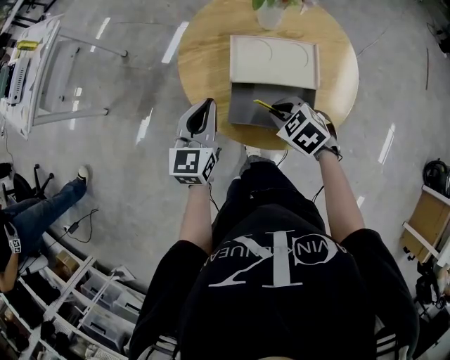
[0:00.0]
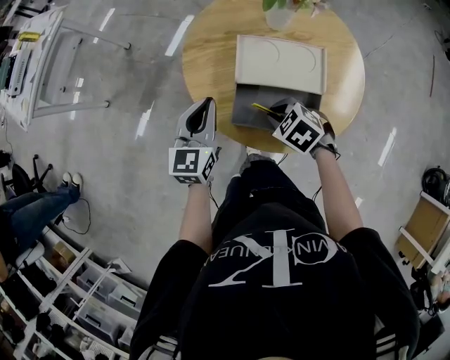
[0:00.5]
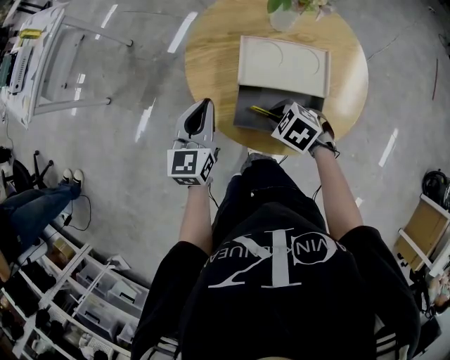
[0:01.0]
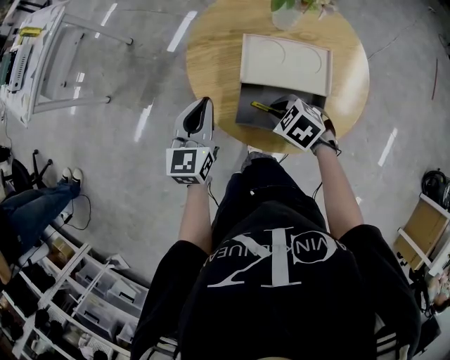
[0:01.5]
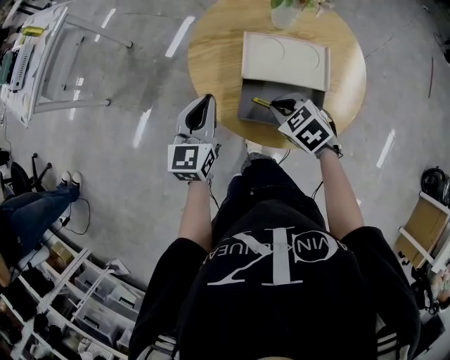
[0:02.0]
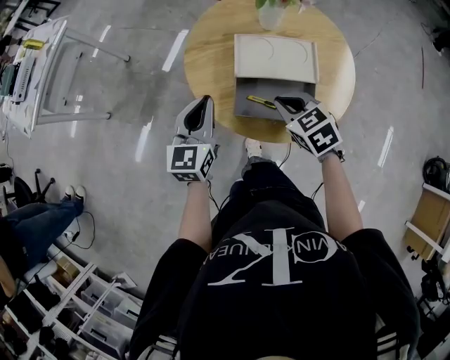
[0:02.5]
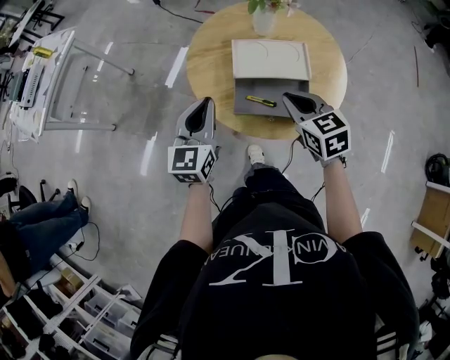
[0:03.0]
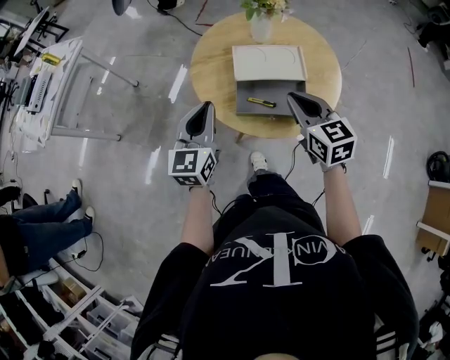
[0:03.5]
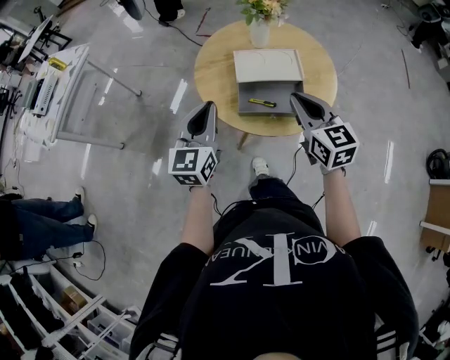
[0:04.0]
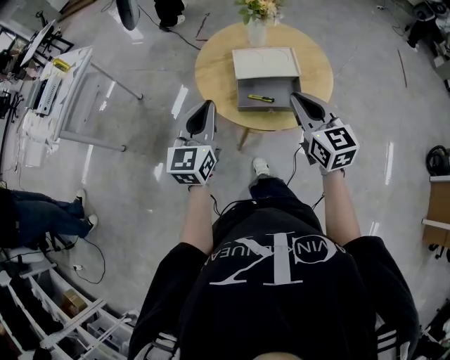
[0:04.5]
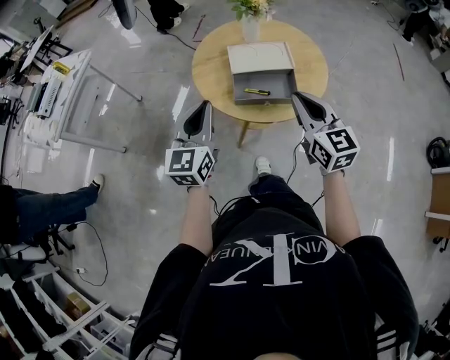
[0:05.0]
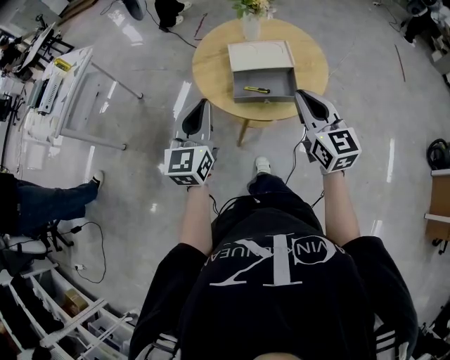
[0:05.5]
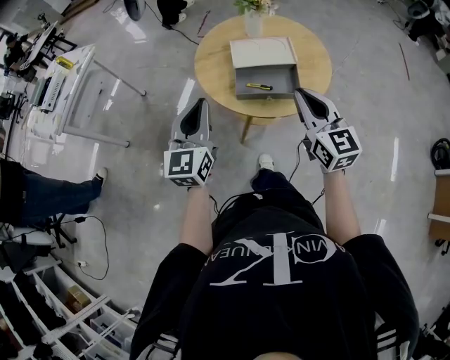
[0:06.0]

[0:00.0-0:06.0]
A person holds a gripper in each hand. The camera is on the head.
0:00.0 to 0:02.0: The grippers stay close to where they were, moving slightly.
0:02.0 to 0:04.0: The right gripper moves upward, about 20 cm, and angles its fingers upward, by roughly 40 degrees, while the left gripper moves upward and backward, roughly 15 cm.
0:04.0 to 0:06.0: Both grippers move backward, roughly 10 cm.

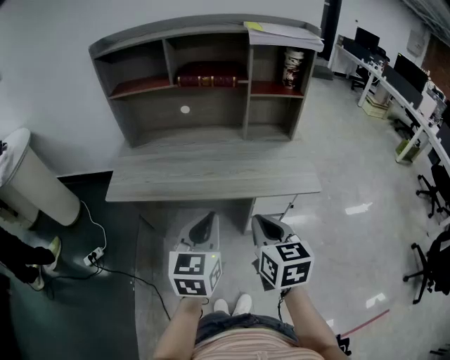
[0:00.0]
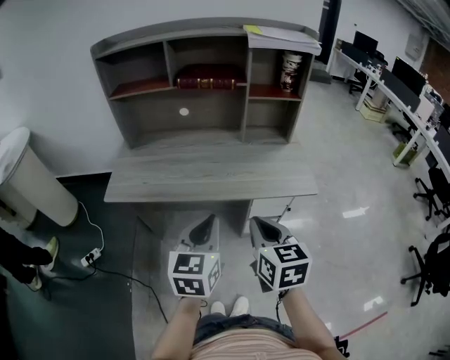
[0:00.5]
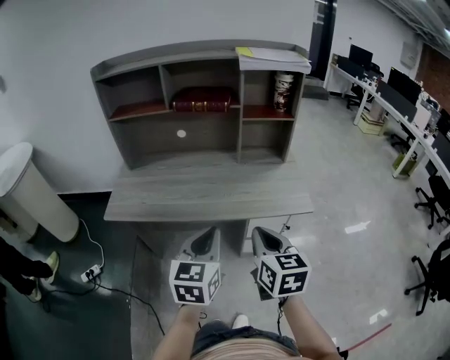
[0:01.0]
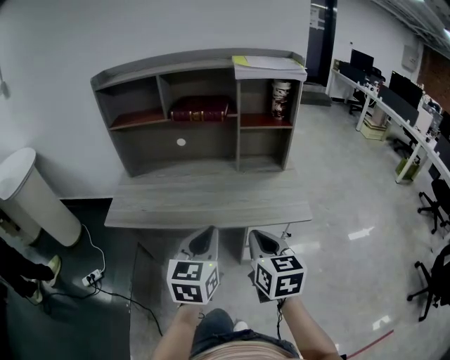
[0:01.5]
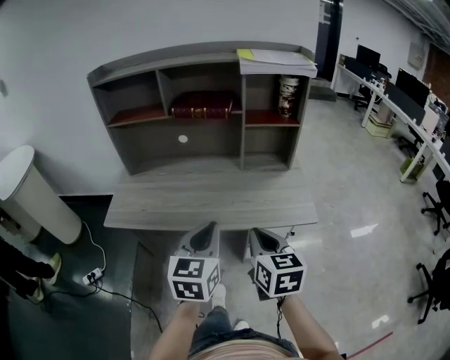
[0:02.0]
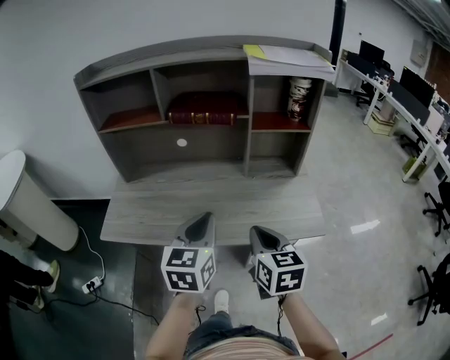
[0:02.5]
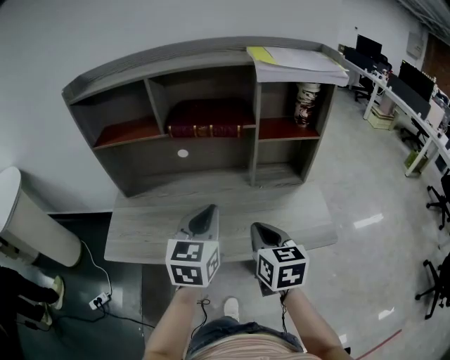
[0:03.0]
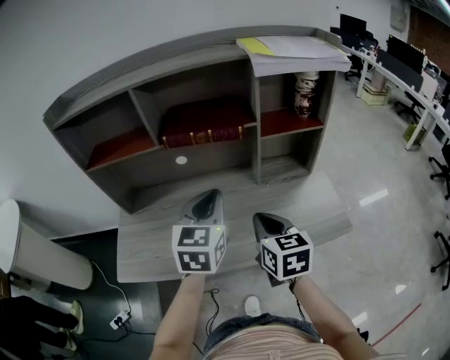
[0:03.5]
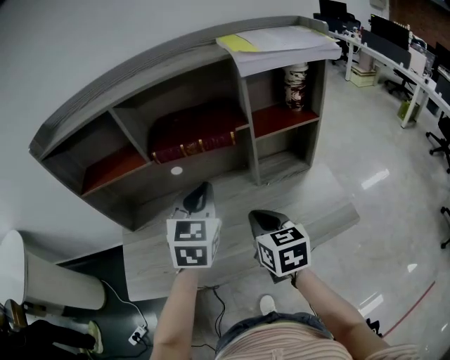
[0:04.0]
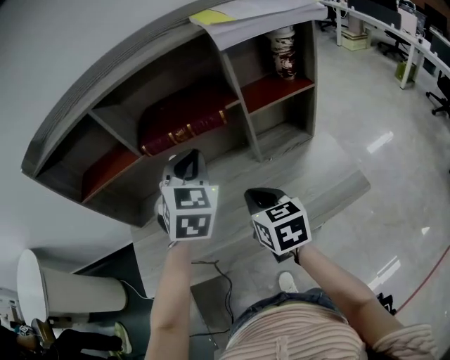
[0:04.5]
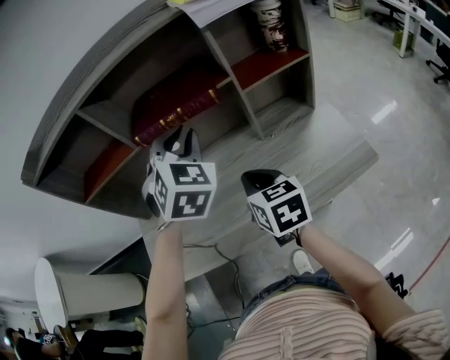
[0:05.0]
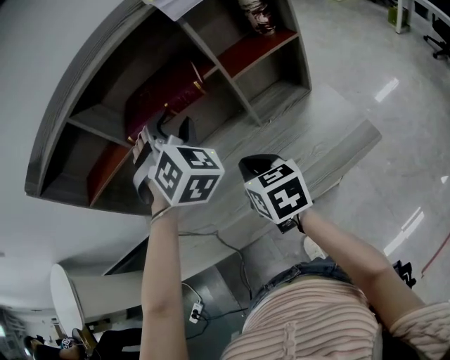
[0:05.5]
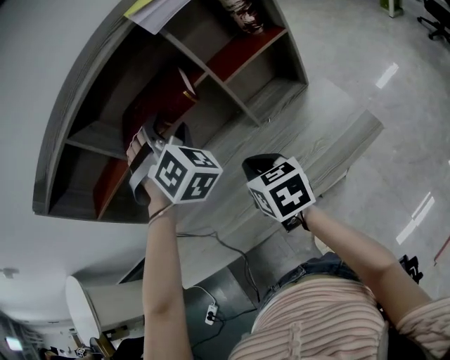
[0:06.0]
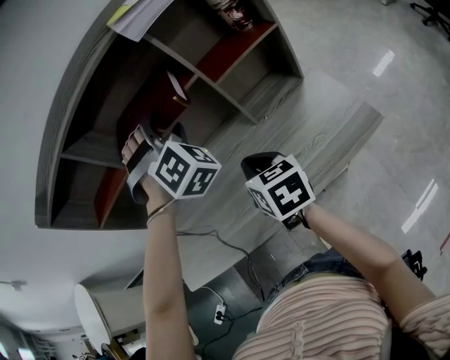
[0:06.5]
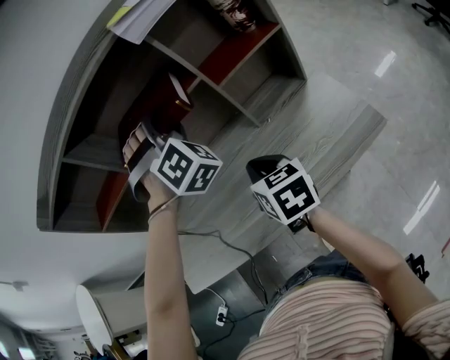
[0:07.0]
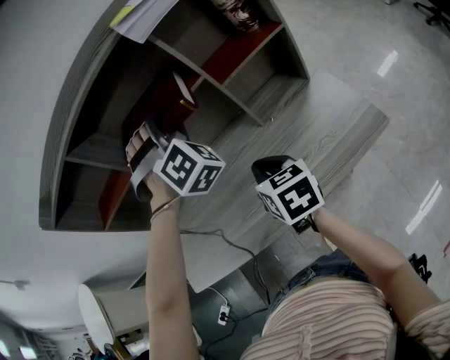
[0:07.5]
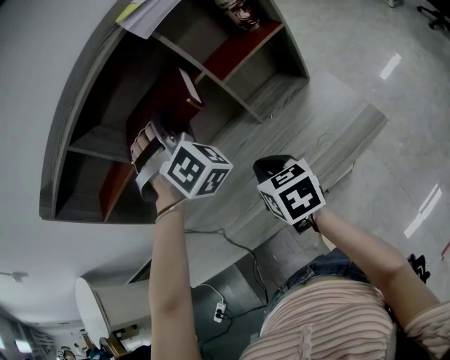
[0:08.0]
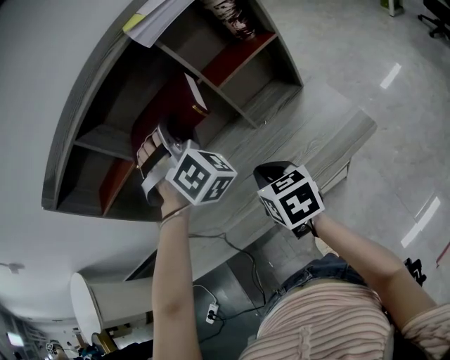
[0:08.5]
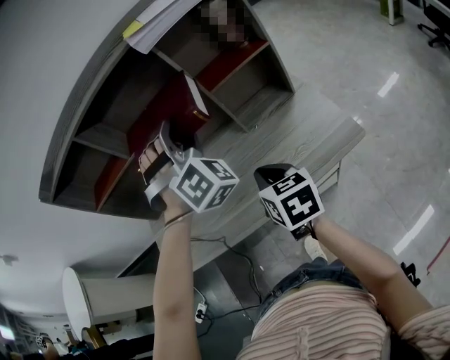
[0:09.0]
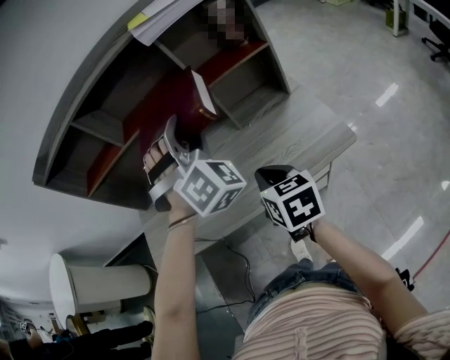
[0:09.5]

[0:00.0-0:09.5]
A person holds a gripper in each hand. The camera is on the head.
0:00.0 to 0:02.0: The two grippers go some 5 cm forward.
0:02.0 to 0:04.0: Both grippers travel together forward, approximately 25 cm. The left gripper rotates some 20 degrees.
0:04.0 to 0:05.5: The left gripper shifts roughly 5 cm forward, twists some 50 degrees clockwise, seen from behind, and opens.
0:05.5 to 0:07.5: The left gripper changes place by roughly 5 cm, and turns by approximately 20 degrees.
0:07.5 to 0:09.5: The grippers both shift backward by about 15 cm.

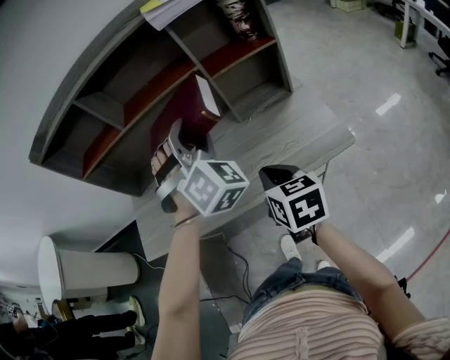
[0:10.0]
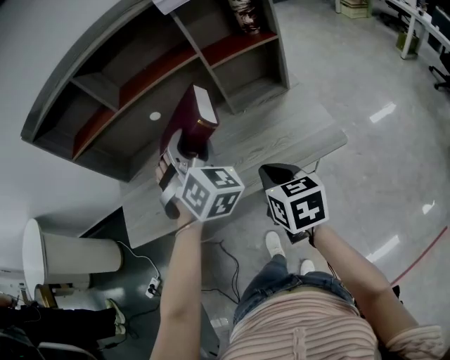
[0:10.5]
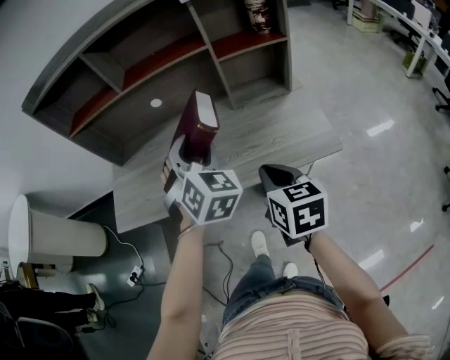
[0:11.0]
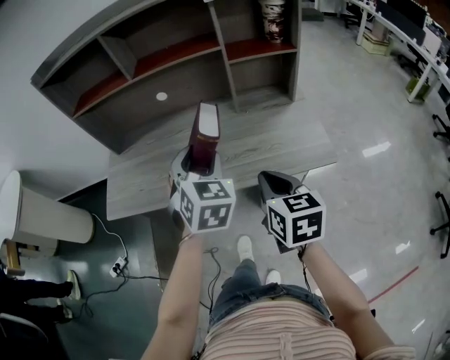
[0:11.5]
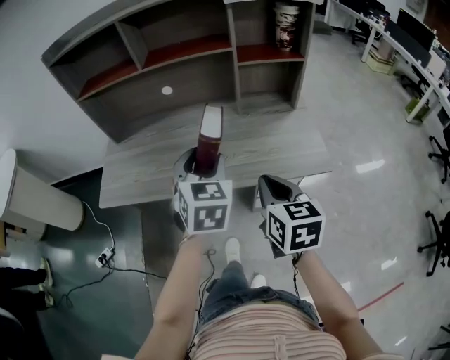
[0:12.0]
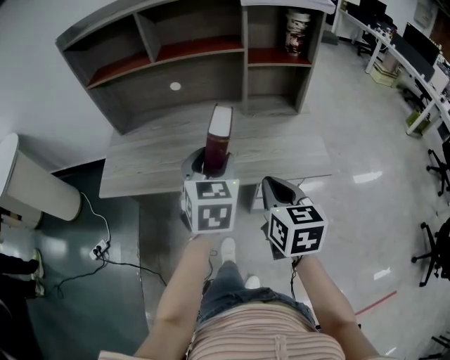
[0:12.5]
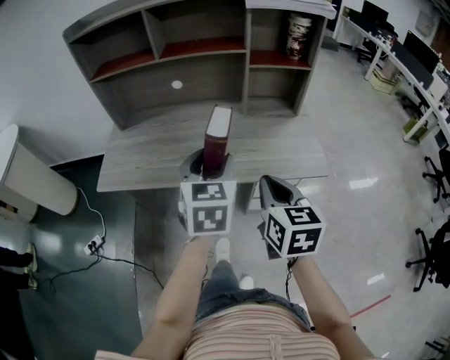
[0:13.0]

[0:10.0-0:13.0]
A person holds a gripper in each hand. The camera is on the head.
0:10.0 to 0:11.5: The right gripper shifts about 5 cm backward; the left gripper travels backward and downward by approximately 15 cm, and rotates around the line of its fingers by approximately 40 degrees, counterclockwise from behind.
0:11.5 to 0:13.0: The right gripper ends up some 5 cm from where it was. The left gripper travels backward by some 5 cm, and turns by roughly 20 degrees.

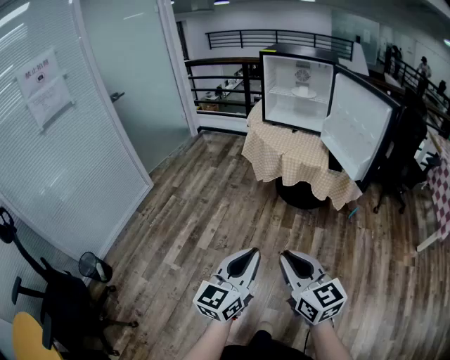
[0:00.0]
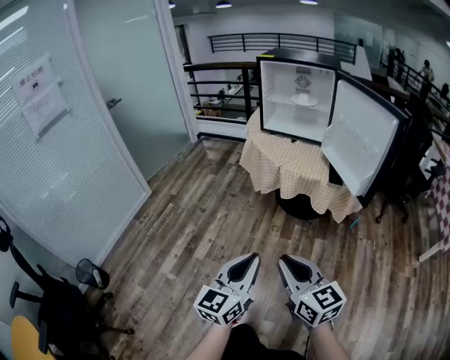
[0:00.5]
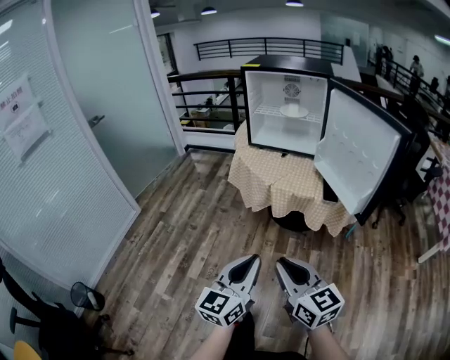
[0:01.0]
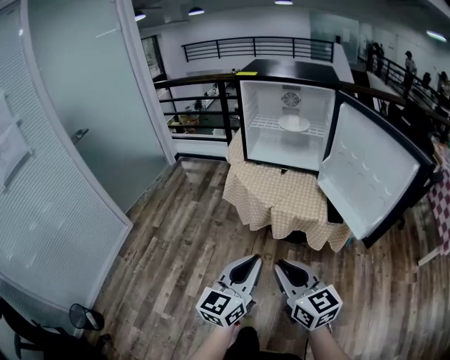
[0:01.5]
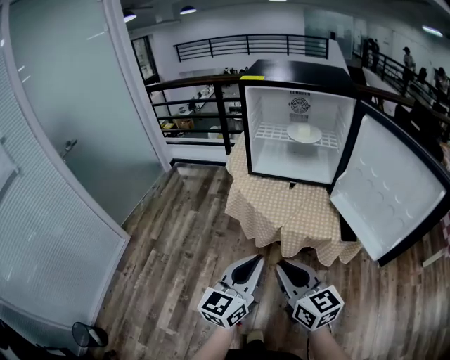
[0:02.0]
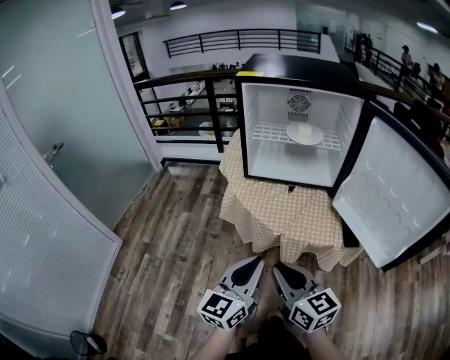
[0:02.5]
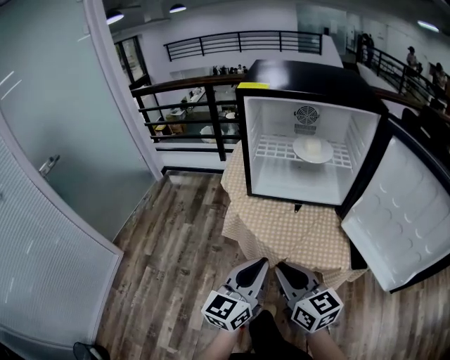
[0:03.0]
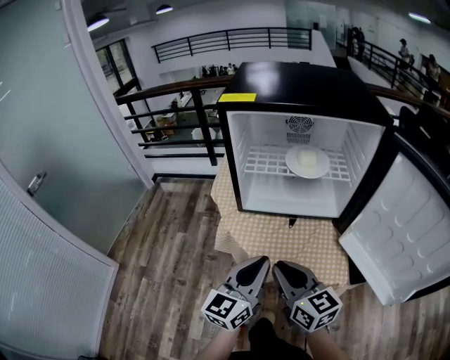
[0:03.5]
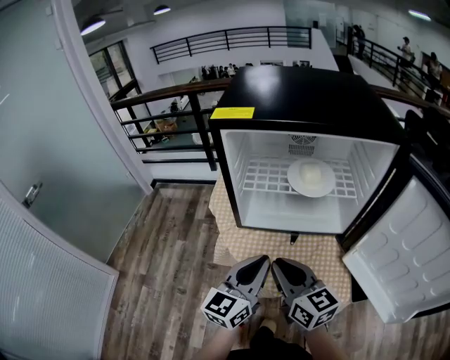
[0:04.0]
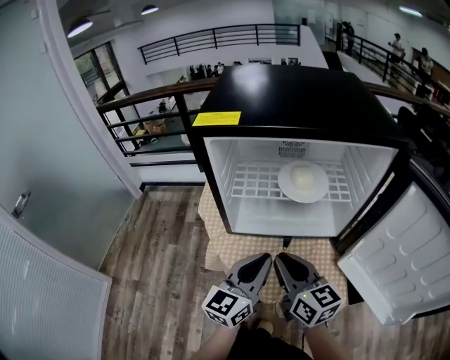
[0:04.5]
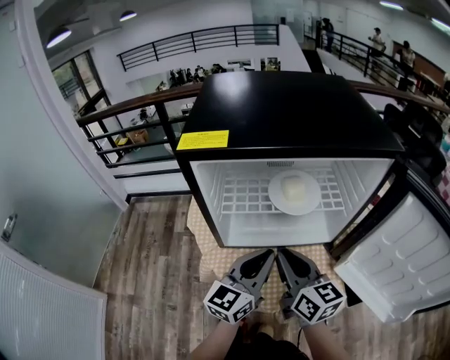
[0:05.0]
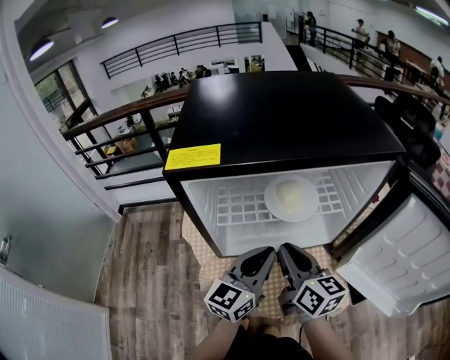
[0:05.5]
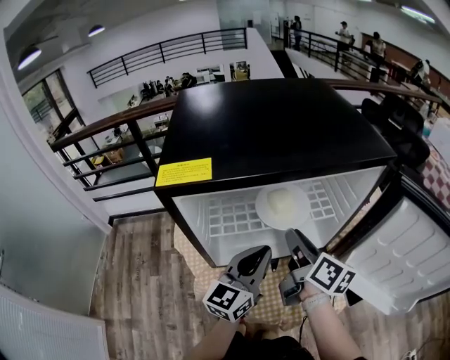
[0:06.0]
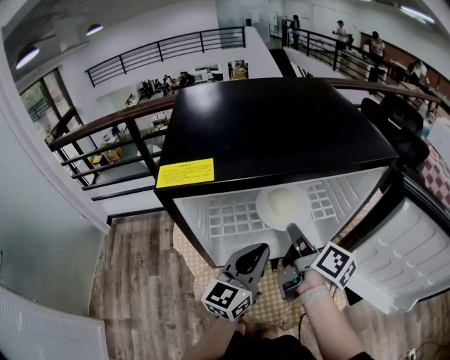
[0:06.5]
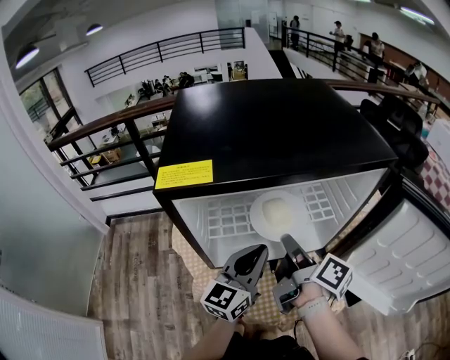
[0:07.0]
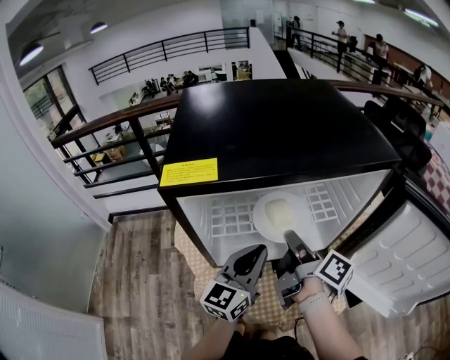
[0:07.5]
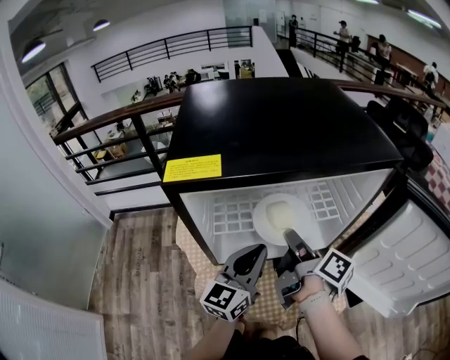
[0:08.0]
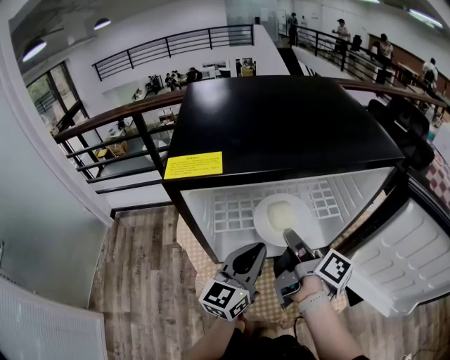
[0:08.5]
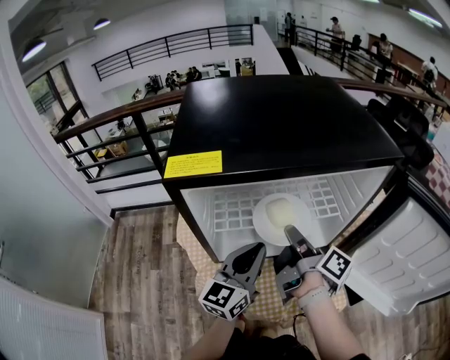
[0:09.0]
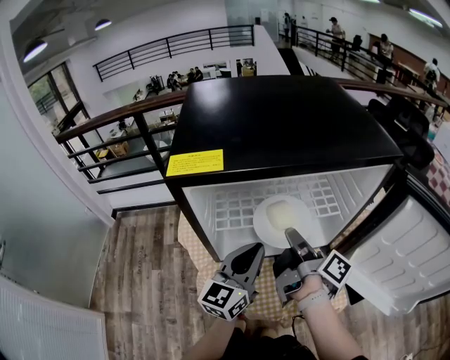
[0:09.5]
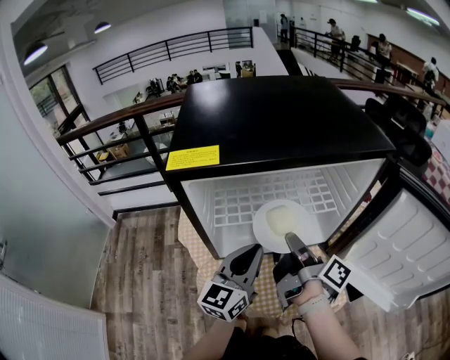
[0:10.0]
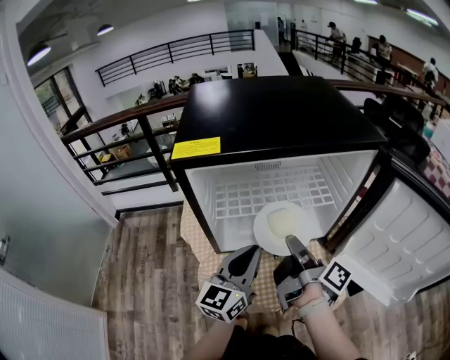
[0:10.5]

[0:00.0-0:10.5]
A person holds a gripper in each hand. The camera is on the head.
0:00.0 to 0:02.0: The two grippers travel together, forward, roughly 40 cm.
0:02.0 to 0:04.0: Both grippers move forward, roughly 30 cm.
0:04.0 to 0:06.5: The left gripper moves some 15 cm; the right gripper changes place by about 20 cm, and twists some 50 degrees clockwise, seen from behind.
0:06.5 to 0:08.5: The grippers make only small movements.
0:08.5 to 0:10.5: Both grippers travel together backward, about 5 cm.
